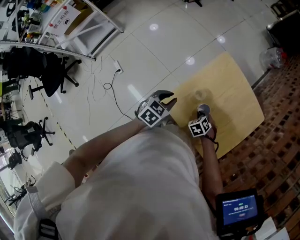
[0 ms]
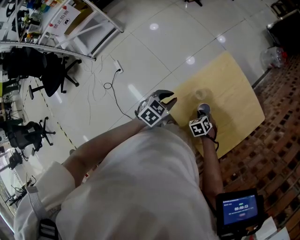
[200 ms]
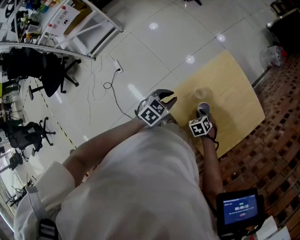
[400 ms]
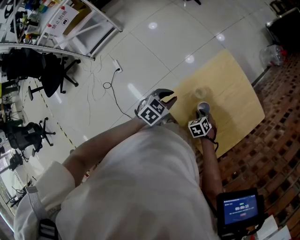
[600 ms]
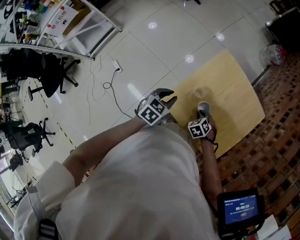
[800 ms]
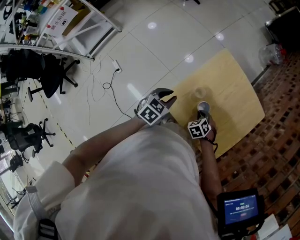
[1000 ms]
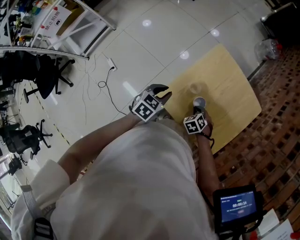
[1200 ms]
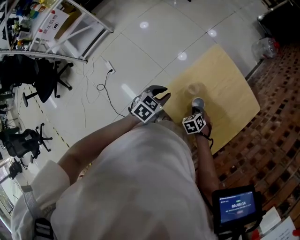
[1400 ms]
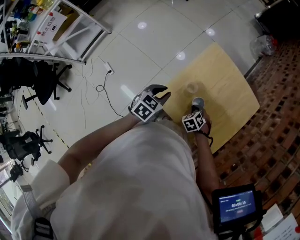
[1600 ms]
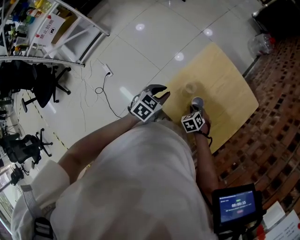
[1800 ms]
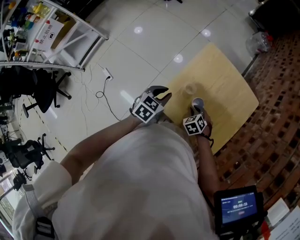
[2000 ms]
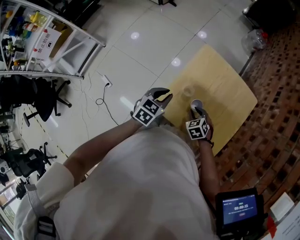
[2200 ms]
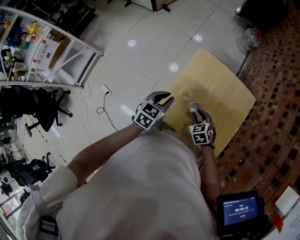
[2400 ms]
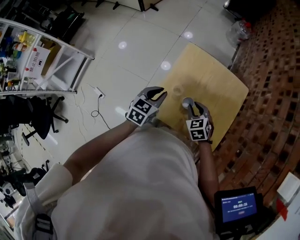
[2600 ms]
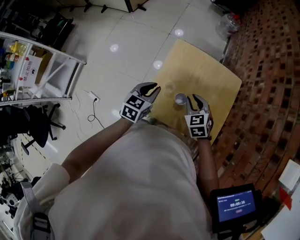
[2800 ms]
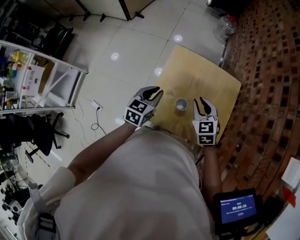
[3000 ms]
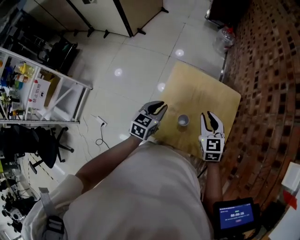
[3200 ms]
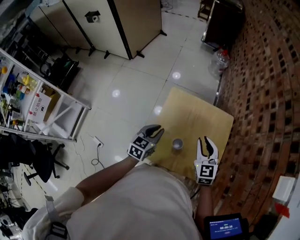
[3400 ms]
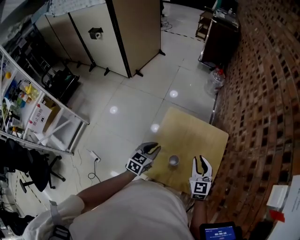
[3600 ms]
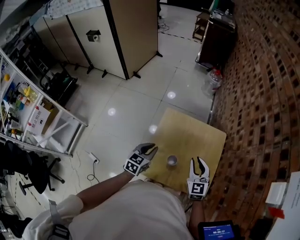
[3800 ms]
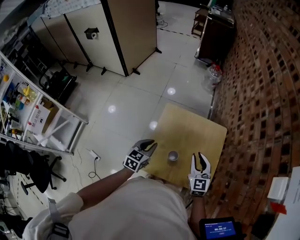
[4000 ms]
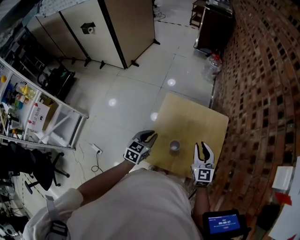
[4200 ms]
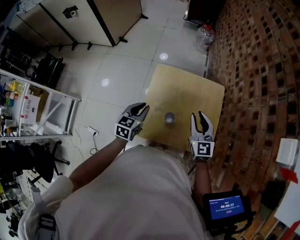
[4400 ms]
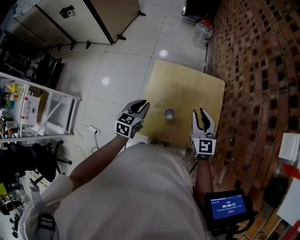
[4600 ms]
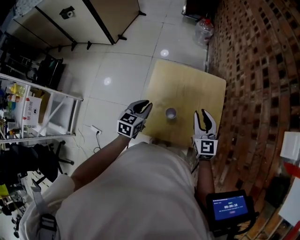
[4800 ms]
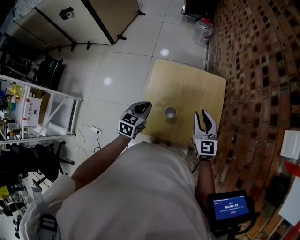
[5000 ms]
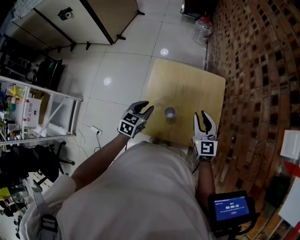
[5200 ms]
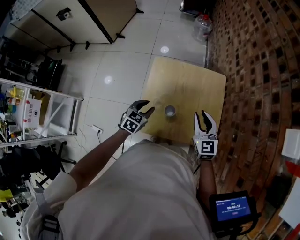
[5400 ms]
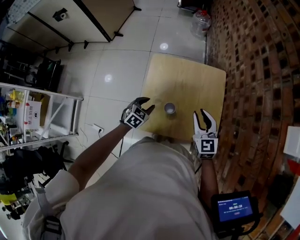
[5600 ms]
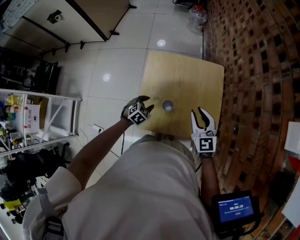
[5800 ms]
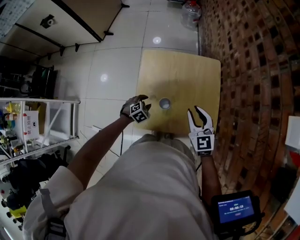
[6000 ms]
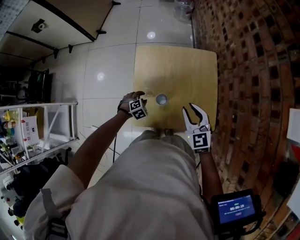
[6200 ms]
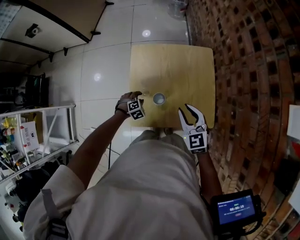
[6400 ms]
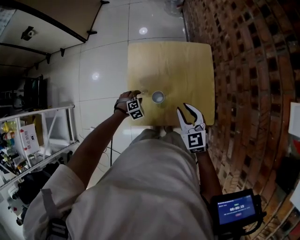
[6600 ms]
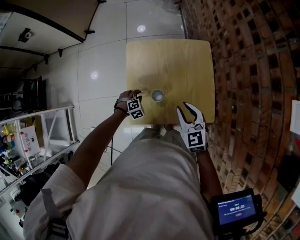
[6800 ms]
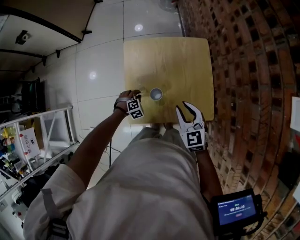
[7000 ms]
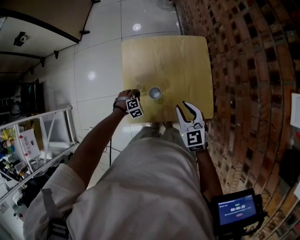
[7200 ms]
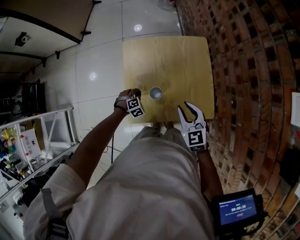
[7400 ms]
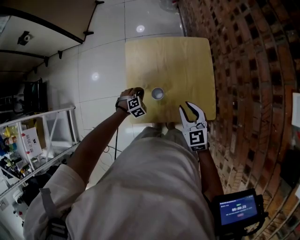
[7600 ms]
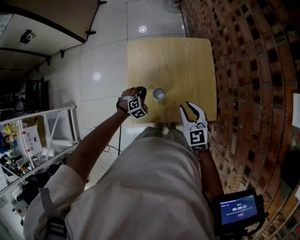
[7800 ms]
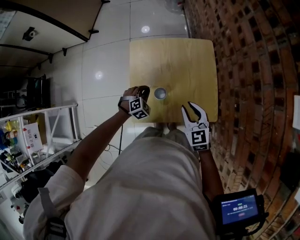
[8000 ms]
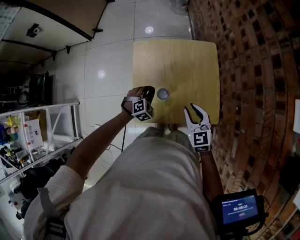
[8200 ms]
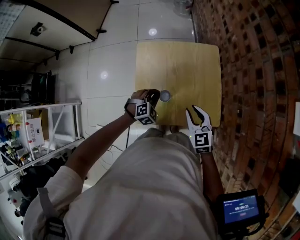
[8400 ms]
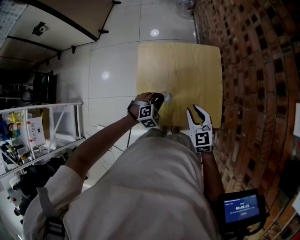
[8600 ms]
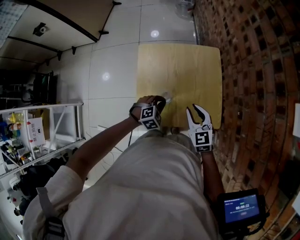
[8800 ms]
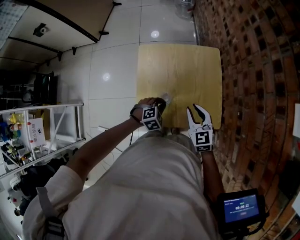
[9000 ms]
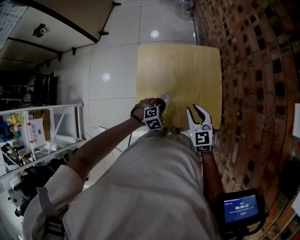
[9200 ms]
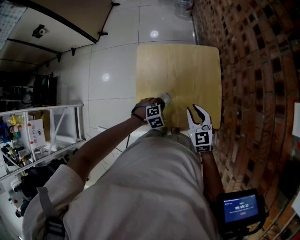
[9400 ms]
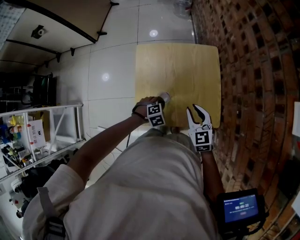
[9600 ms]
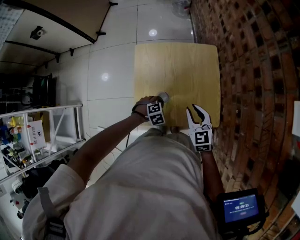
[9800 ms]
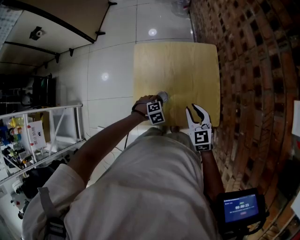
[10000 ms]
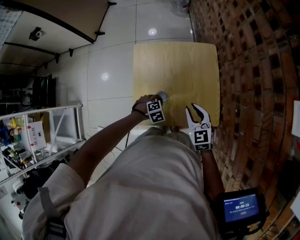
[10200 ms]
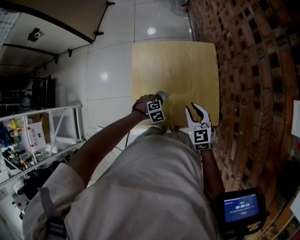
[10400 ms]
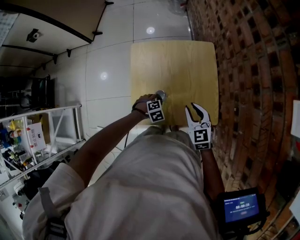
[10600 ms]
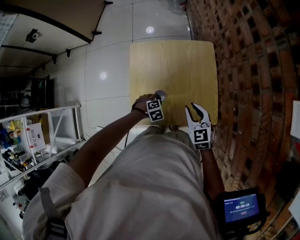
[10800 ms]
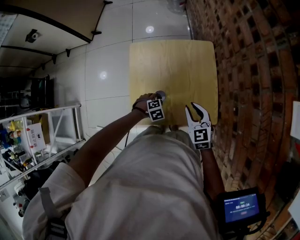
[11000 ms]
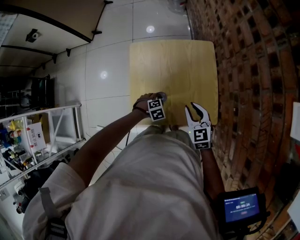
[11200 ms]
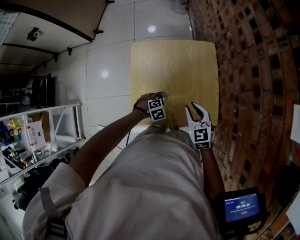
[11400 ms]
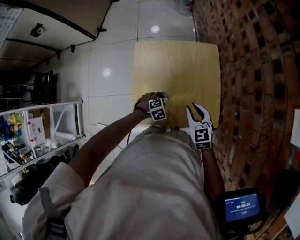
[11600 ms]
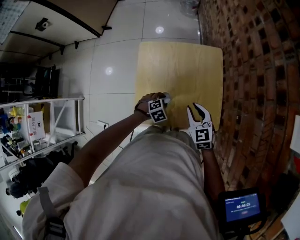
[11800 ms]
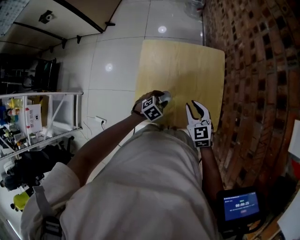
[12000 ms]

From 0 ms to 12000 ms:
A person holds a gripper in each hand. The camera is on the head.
From 0 ms to 1600 ms: The grippers move only a little.
From 1600 ms to 3000 ms: The left gripper heads upward and forward, covering roughly 10 cm, while the right gripper goes roughly 25 cm upward, and angles its fingers upward, by roughly 40 degrees.
From 3000 ms to 4400 ms: The right gripper shifts approximately 10 cm upward and to the right, and swivels about 30 degrees.
From 4400 ms to 6000 ms: The left gripper is displaced downward by some 20 cm, tilts its fingers some 40 degrees downward, and opens its fingers; the right gripper shifts roughly 10 cm downward and backward.
From 6000 ms to 7600 ms: The right gripper ends up roughly 5 cm from where it was. The left gripper closes its fingers.
From 7600 ms to 9000 ms: The left gripper moves upward and to the right, roughly 15 cm.
From 9000 ms to 10400 ms: The left gripper is displaced downward by some 5 cm.
From 10400 ms to 12000 ms: The left gripper shifts some 5 cm upward, swivels about 30 degrees, and opens up.

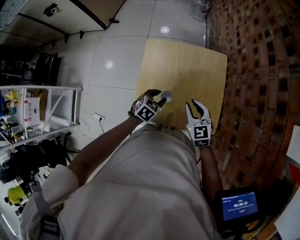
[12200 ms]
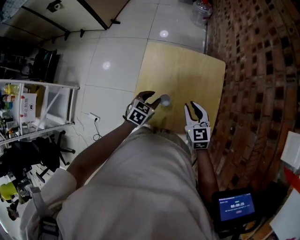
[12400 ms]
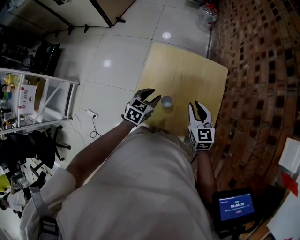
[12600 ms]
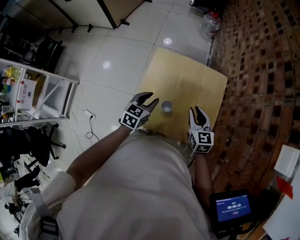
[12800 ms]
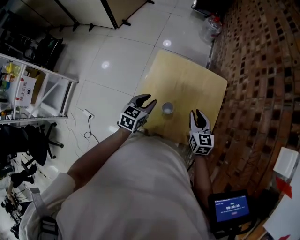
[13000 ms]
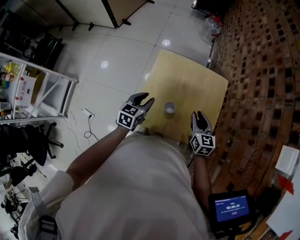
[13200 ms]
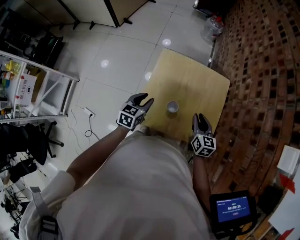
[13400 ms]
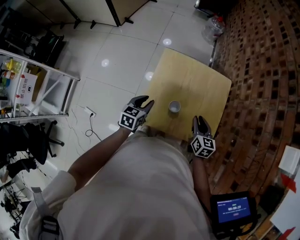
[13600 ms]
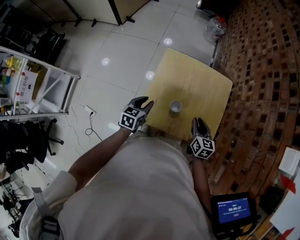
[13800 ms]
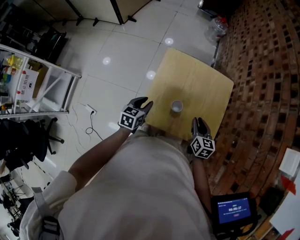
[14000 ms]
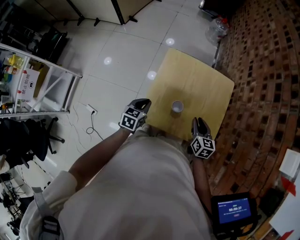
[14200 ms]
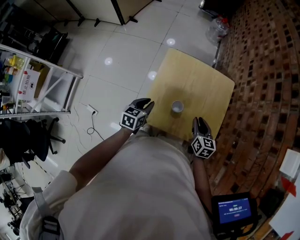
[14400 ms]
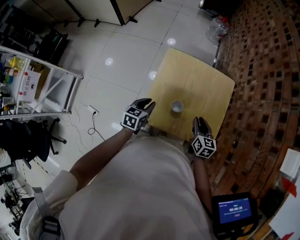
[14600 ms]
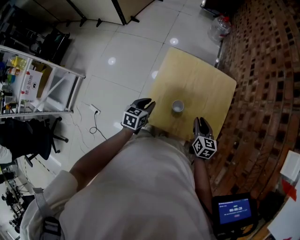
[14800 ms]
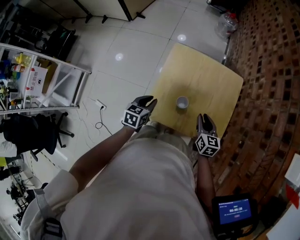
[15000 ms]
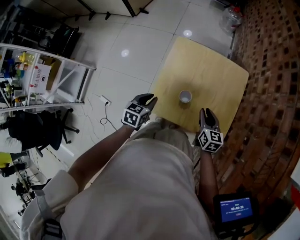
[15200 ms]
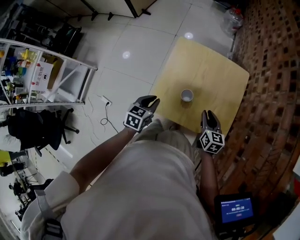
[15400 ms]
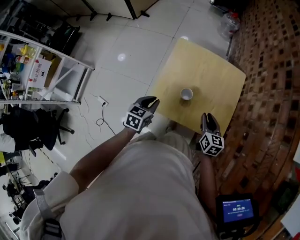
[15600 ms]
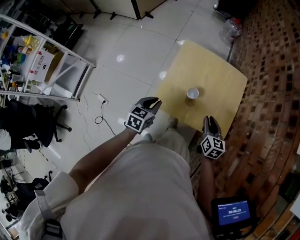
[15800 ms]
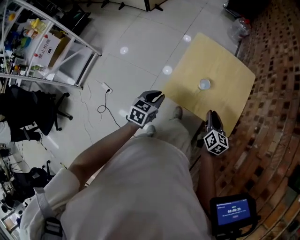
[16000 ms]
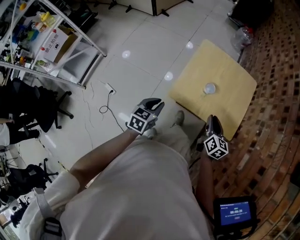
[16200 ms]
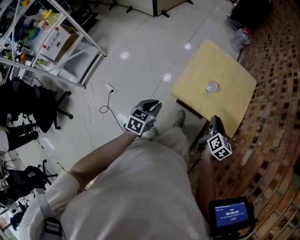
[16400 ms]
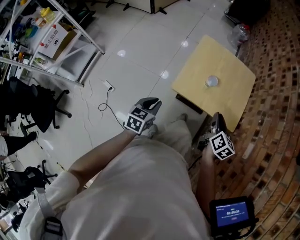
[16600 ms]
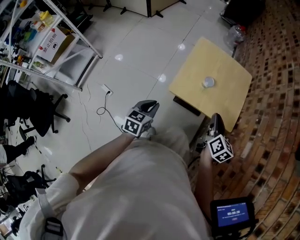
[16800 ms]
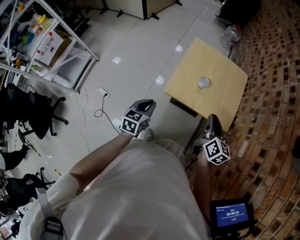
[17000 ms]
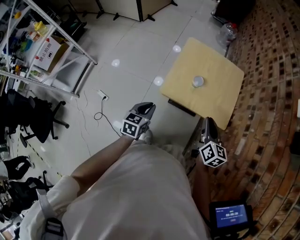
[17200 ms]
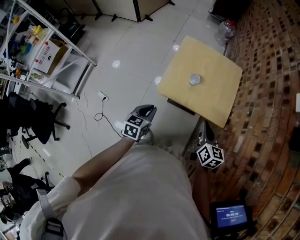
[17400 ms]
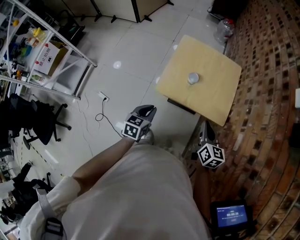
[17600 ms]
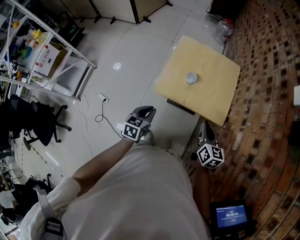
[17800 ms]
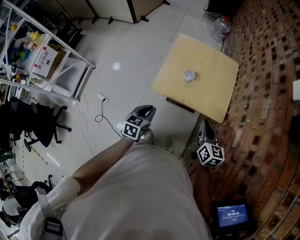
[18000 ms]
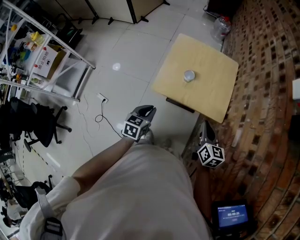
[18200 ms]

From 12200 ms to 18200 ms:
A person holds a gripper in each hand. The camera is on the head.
From 12200 ms to 13800 ms: The right gripper changes its angle by approximately 20 degrees. The left gripper is displaced to the left by approximately 15 cm, and turns by roughly 40 degrees.
From 13800 ms to 15200 ms: The grippers stay close to where they were, moving slightly.
From 15200 ms to 16600 ms: The right gripper heads backward and upward, covering roughly 20 cm. The left gripper heads backward, covering some 25 cm.
From 16600 ms to 18200 ms: The left gripper moves to the right, approximately 10 cm, while the right gripper heads to the right and backward, covering about 10 cm.

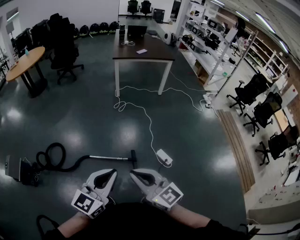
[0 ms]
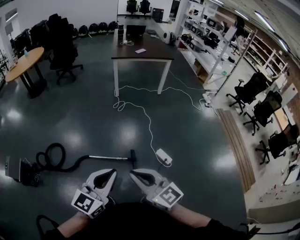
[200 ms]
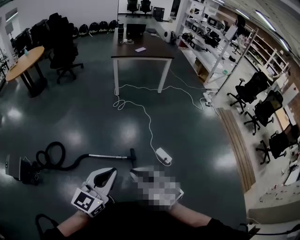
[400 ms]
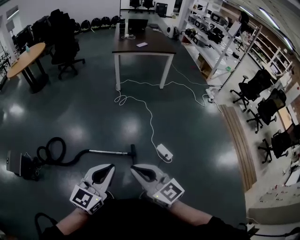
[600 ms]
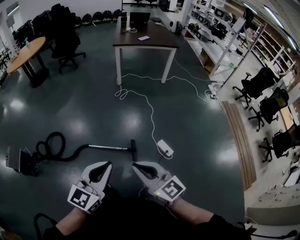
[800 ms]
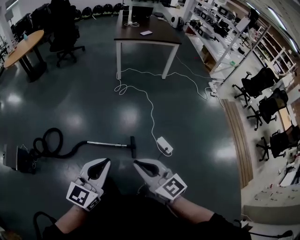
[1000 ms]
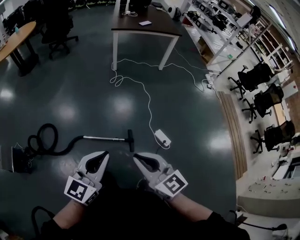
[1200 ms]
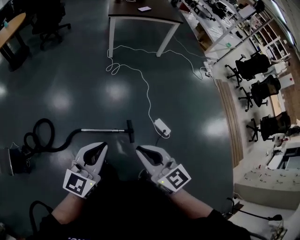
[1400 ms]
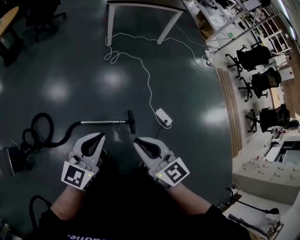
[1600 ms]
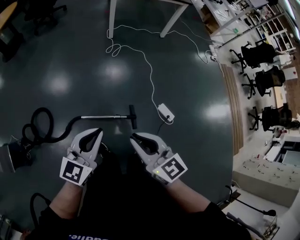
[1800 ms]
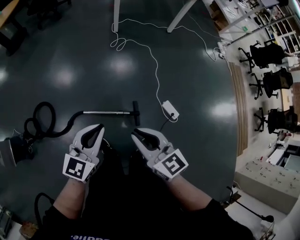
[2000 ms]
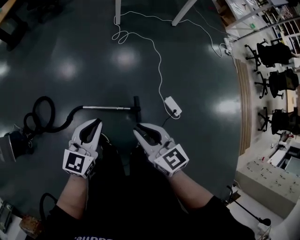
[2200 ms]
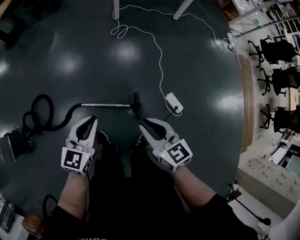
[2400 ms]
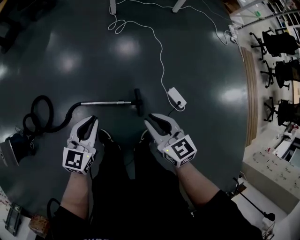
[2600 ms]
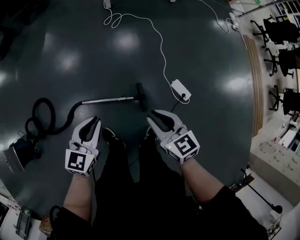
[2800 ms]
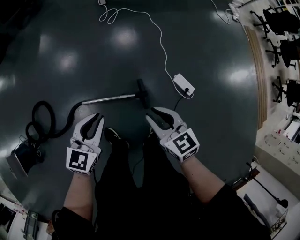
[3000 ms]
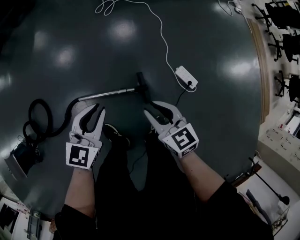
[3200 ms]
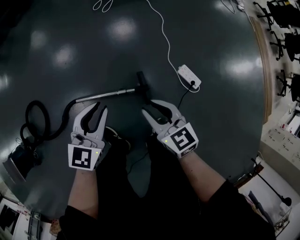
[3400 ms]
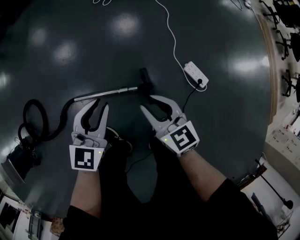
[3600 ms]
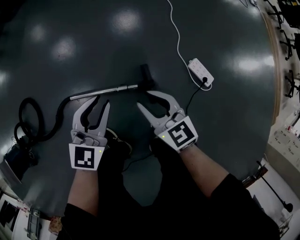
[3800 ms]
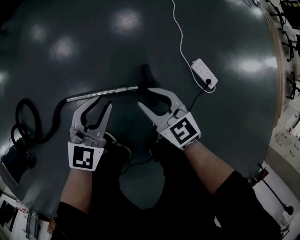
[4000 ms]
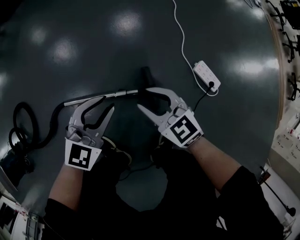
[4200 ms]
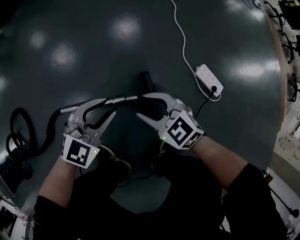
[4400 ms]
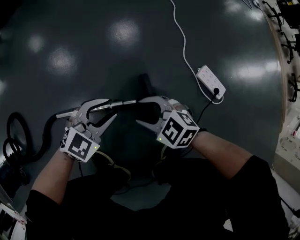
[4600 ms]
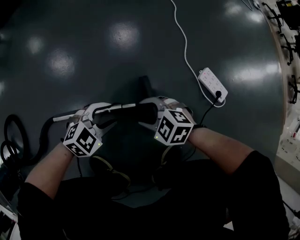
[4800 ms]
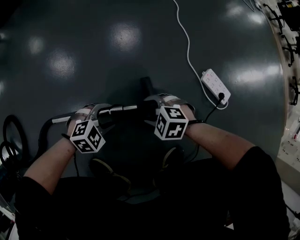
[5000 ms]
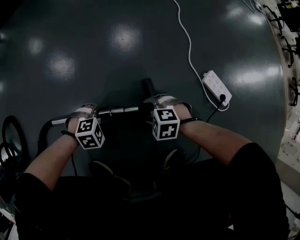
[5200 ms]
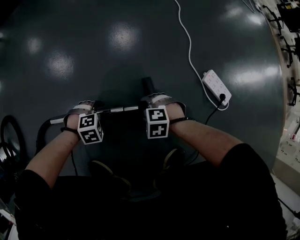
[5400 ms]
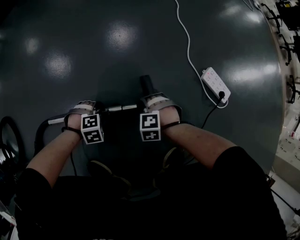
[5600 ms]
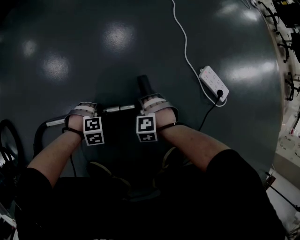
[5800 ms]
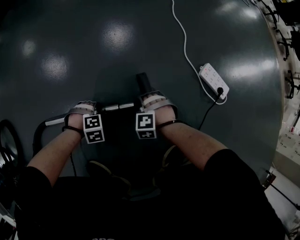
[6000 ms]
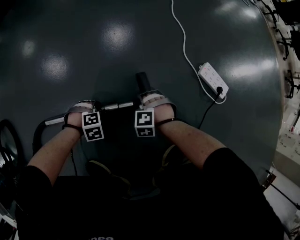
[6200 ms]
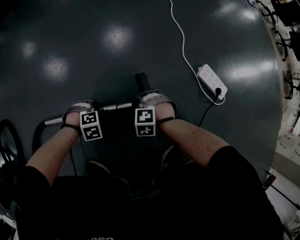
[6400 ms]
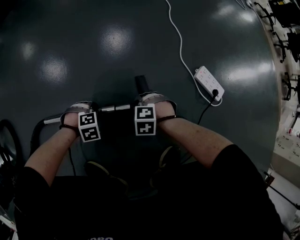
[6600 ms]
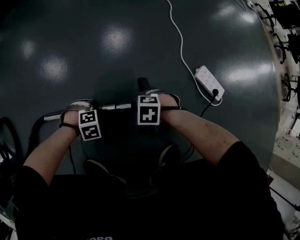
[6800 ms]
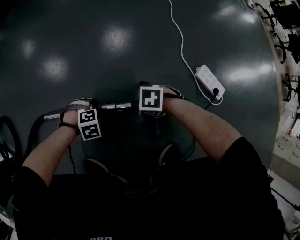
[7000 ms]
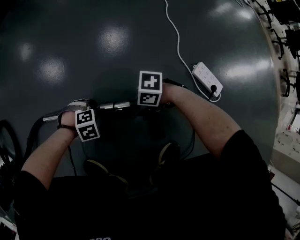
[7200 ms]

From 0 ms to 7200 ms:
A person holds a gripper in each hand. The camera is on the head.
From 0 ms to 1400 ms: The right gripper shifts about 15 cm forward and downward, while the left gripper moves forward, to the left and downward, roughly 20 cm.
From 1400 ms to 2800 ms: Both grippers move downward and forward, some 30 cm. The left gripper changes its angle by approximately 20 degrees.
From 2800 ms to 4400 ms: The two grippers go approximately 35 cm downward. The left gripper swivels roughly 40 degrees, while the right gripper swivels some 30 degrees, and opens its fingers.
From 4400 ms to 5800 ms: The two grippers go some 35 cm downward. The left gripper angles its fingers downward, by approximately 60 degrees, while the right gripper points its fingers about 40 degrees further downward.
From 5800 ms to 7200 ms: The right gripper heads upward, covering approximately 10 cm, and points its fingers roughly 30 degrees further upward.
